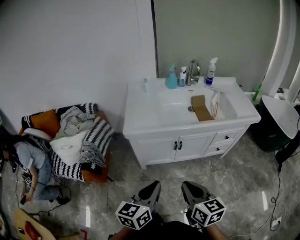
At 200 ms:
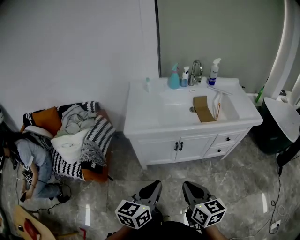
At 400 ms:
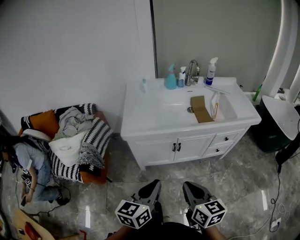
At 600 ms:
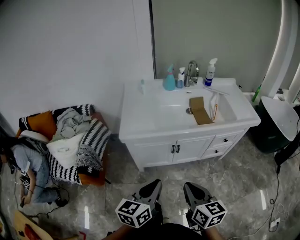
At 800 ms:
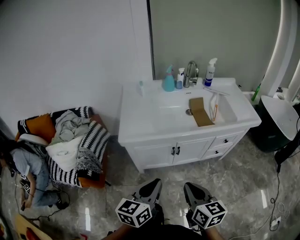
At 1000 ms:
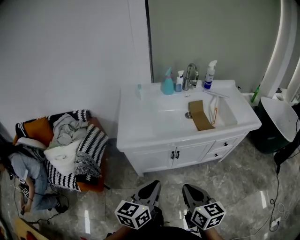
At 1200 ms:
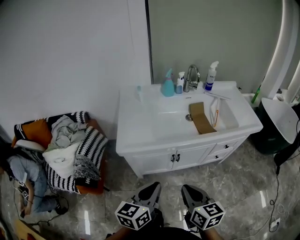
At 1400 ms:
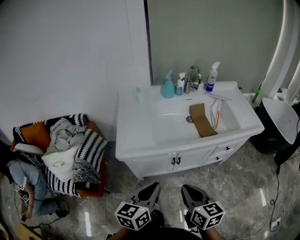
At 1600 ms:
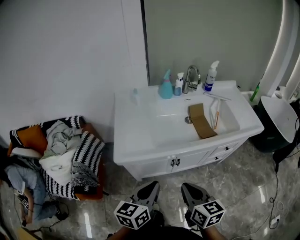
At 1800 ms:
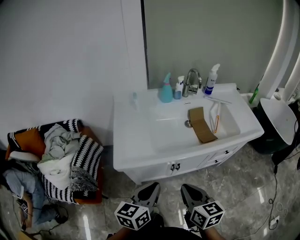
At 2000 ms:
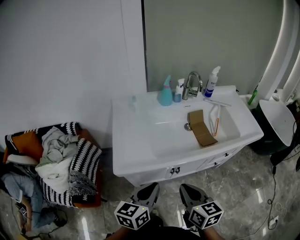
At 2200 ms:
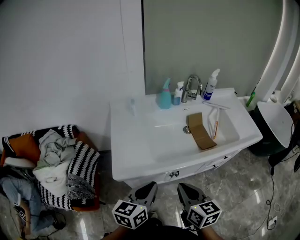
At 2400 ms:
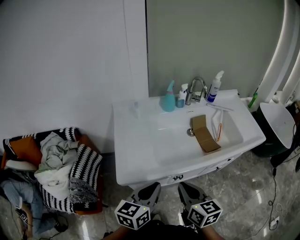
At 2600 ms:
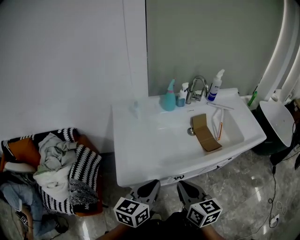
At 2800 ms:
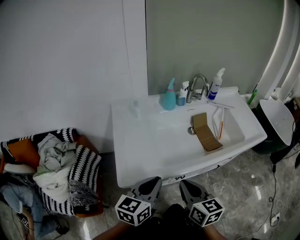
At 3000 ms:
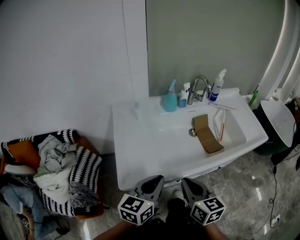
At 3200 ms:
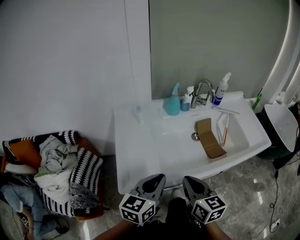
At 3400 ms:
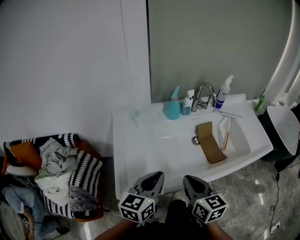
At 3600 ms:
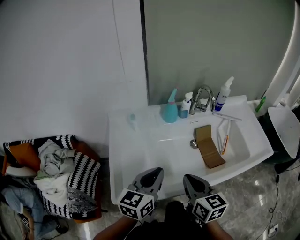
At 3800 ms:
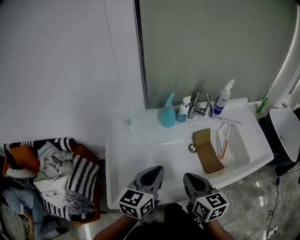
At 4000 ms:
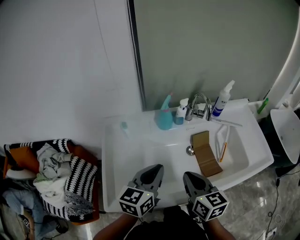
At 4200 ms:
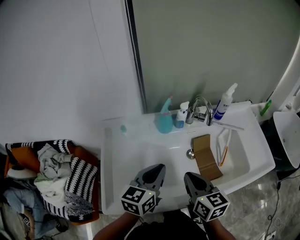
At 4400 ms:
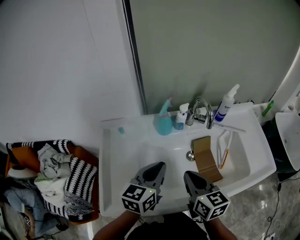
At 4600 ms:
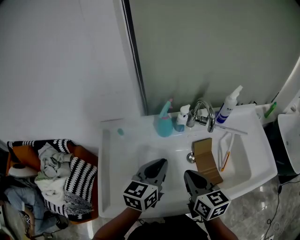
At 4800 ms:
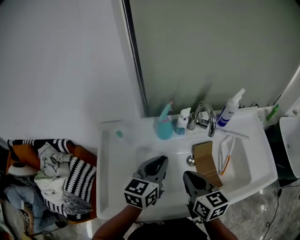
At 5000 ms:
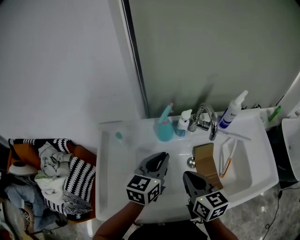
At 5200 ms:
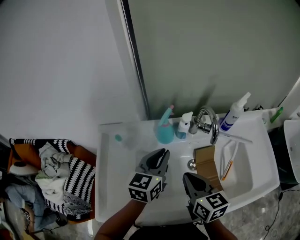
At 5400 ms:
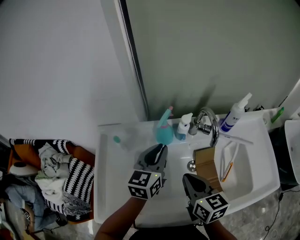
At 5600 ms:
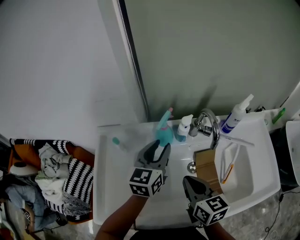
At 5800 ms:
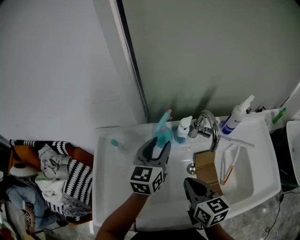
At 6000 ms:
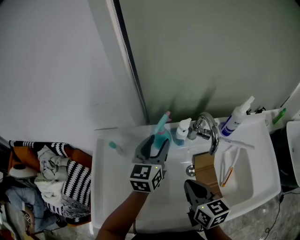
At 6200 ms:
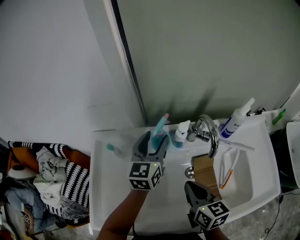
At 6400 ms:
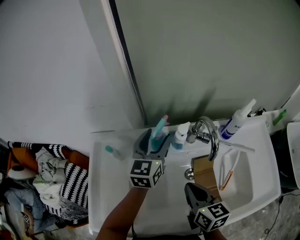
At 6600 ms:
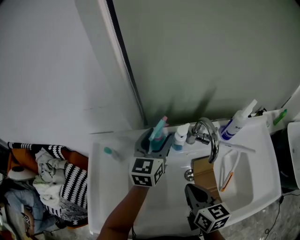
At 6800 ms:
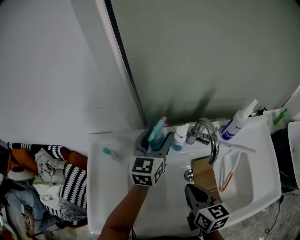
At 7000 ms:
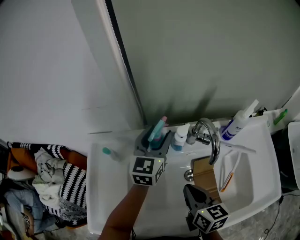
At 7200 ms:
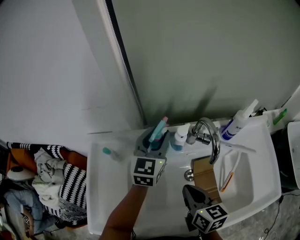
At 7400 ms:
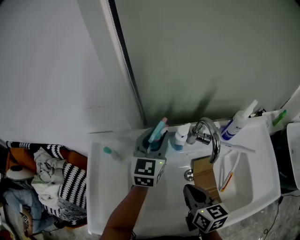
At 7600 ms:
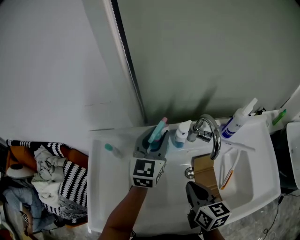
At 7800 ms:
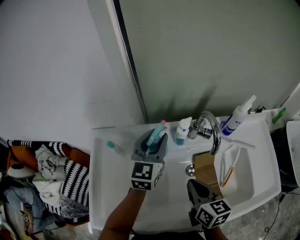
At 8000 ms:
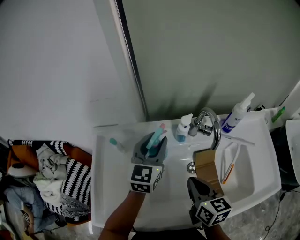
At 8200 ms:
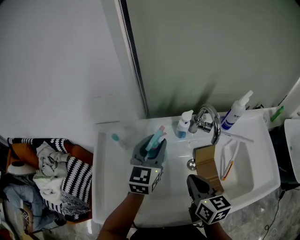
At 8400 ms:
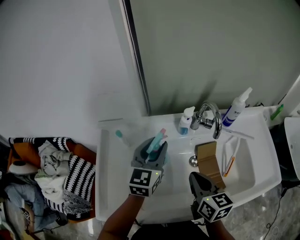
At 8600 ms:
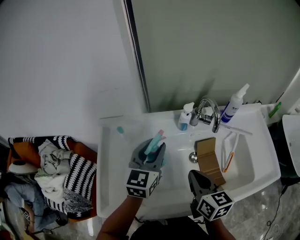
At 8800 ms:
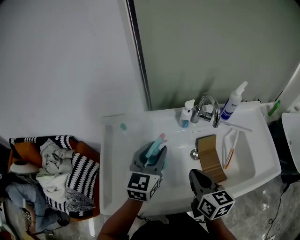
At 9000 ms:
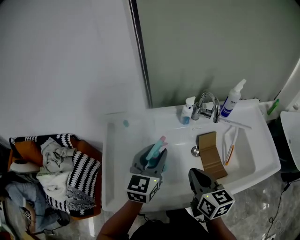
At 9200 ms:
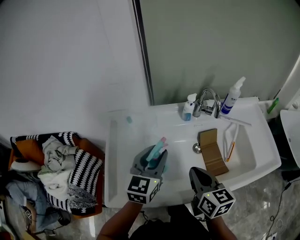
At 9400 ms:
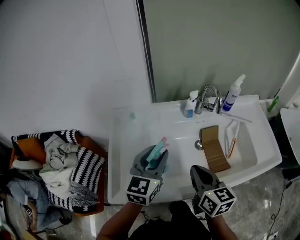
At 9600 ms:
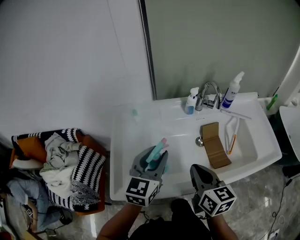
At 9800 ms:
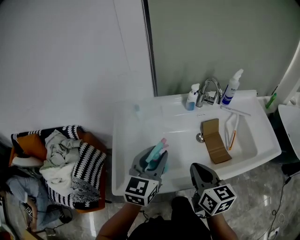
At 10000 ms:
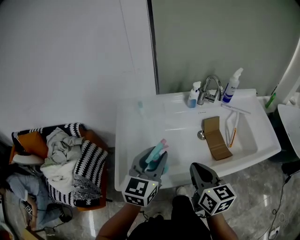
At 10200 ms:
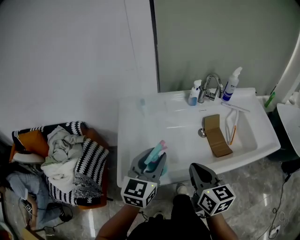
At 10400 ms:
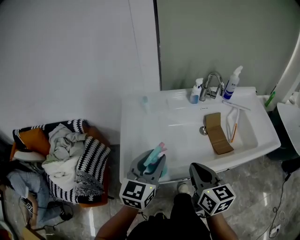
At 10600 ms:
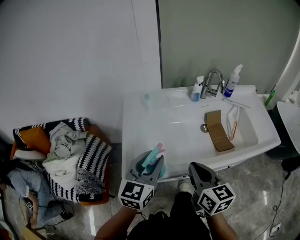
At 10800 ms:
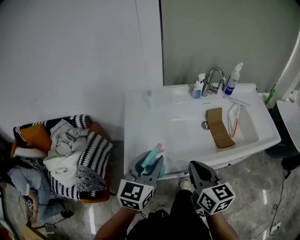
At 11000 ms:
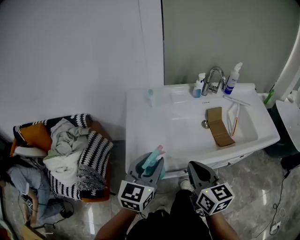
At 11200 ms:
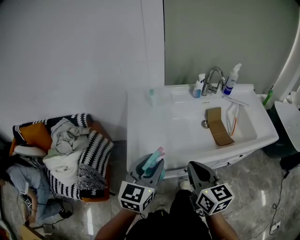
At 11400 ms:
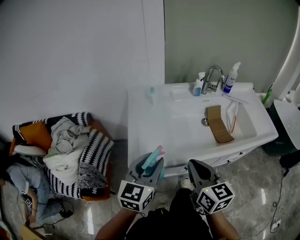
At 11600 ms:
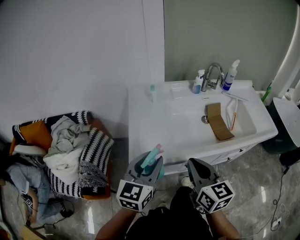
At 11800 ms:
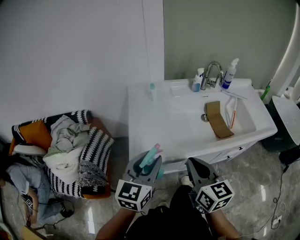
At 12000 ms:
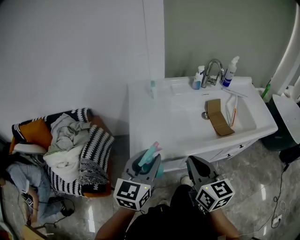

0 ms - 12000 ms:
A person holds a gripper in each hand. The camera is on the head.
0 ms - 1600 ms: The grippers both shift forward by approximately 15 cm.
1600 ms - 3000 ms: The left gripper travels forward by some 15 cm; the right gripper moves forward and to the left, approximately 15 cm.
3000 ms - 4400 ms: The grippers both shift forward by approximately 25 cm.
4400 ms - 6000 ms: The right gripper goes about 5 cm forward. The left gripper is displaced forward by some 20 cm, and opens up.
6000 ms - 7600 ms: The grippers move only a little.
7600 ms - 9000 ms: The left gripper shifts roughly 20 cm backward; the right gripper shifts some 10 cm backward.
9000 ms - 10400 ms: The grippers both shift backward and to the left by about 20 cm.
10400 ms - 12000 ms: Both grippers travel together backward and to the left, approximately 10 cm.

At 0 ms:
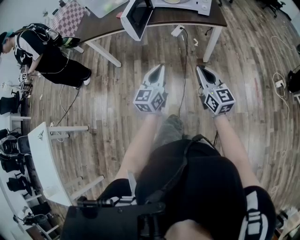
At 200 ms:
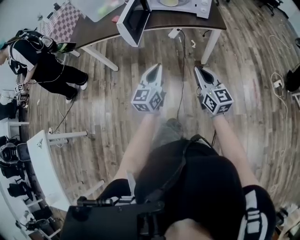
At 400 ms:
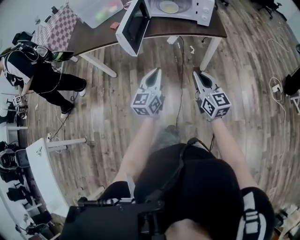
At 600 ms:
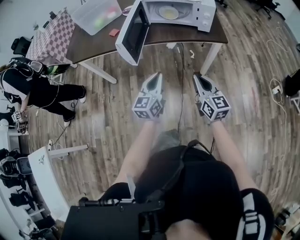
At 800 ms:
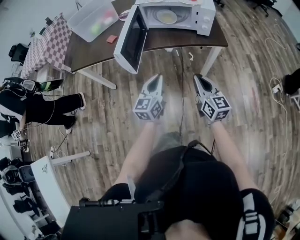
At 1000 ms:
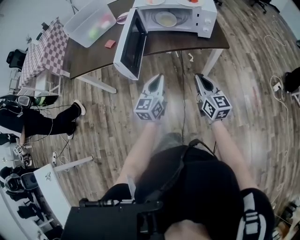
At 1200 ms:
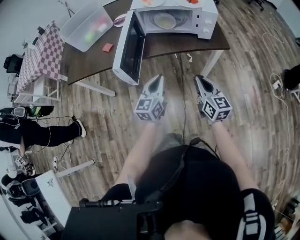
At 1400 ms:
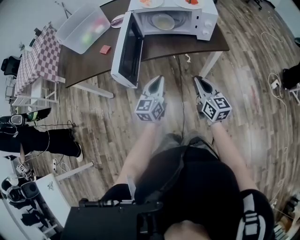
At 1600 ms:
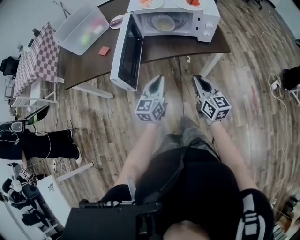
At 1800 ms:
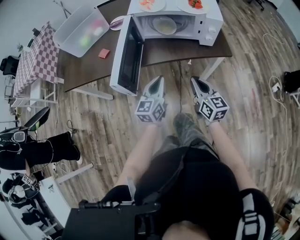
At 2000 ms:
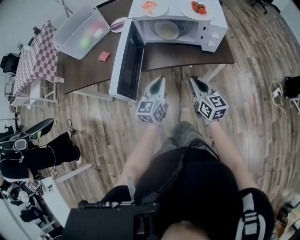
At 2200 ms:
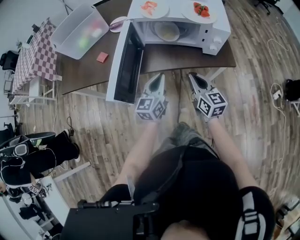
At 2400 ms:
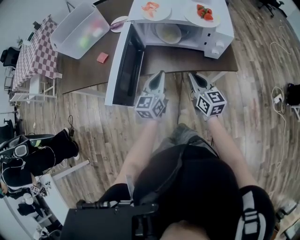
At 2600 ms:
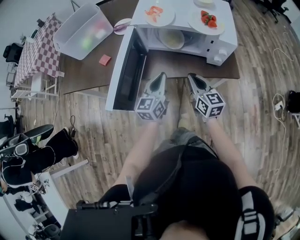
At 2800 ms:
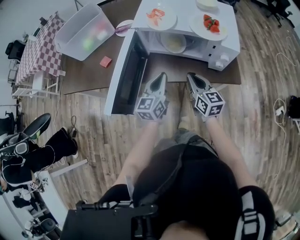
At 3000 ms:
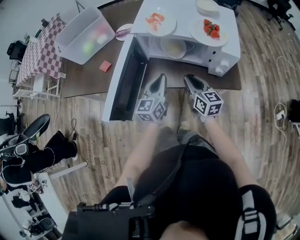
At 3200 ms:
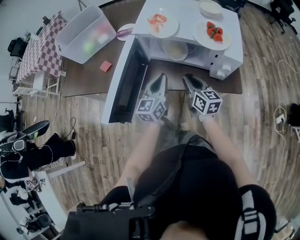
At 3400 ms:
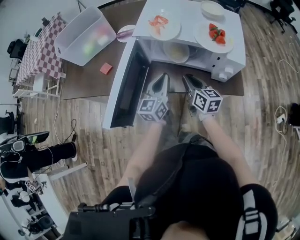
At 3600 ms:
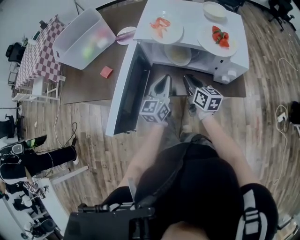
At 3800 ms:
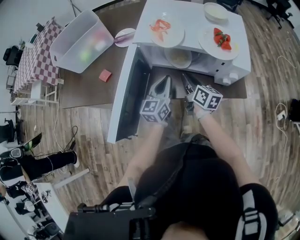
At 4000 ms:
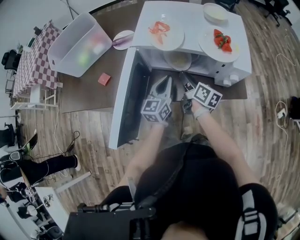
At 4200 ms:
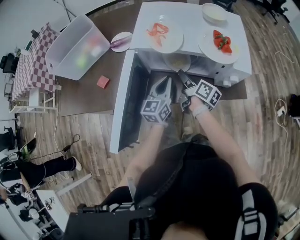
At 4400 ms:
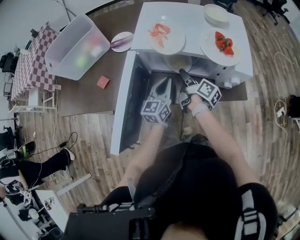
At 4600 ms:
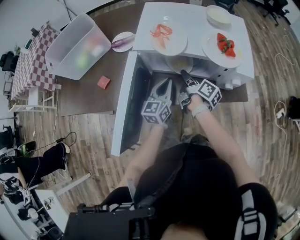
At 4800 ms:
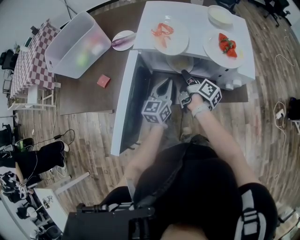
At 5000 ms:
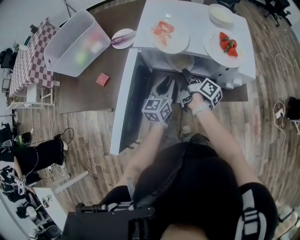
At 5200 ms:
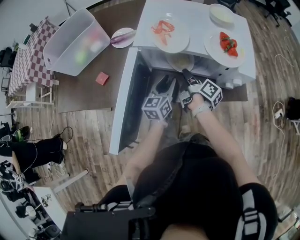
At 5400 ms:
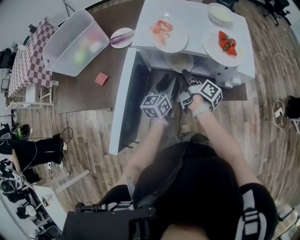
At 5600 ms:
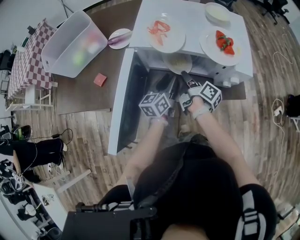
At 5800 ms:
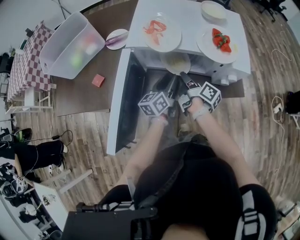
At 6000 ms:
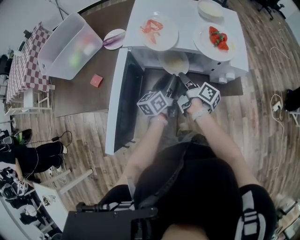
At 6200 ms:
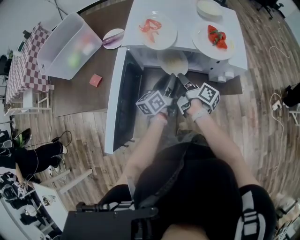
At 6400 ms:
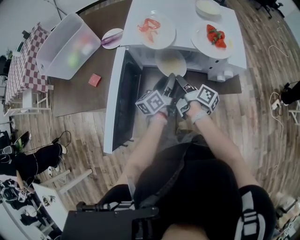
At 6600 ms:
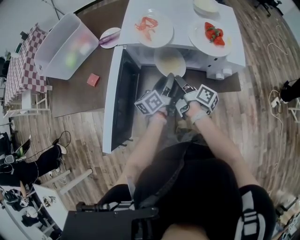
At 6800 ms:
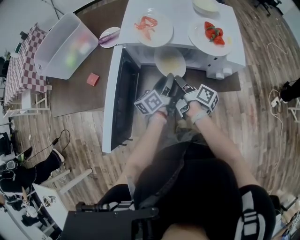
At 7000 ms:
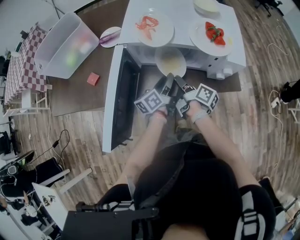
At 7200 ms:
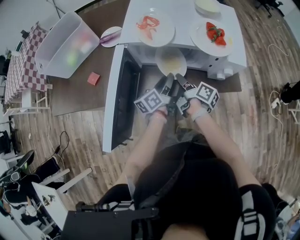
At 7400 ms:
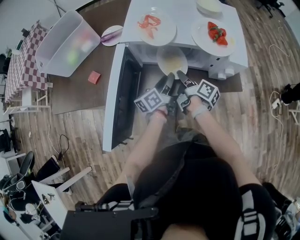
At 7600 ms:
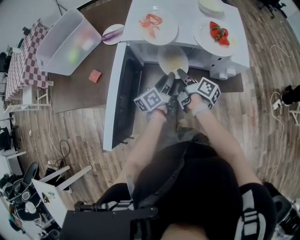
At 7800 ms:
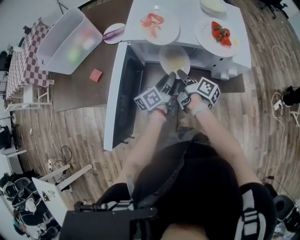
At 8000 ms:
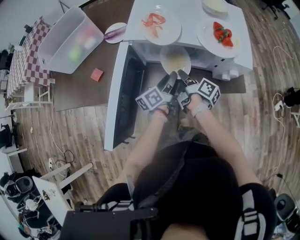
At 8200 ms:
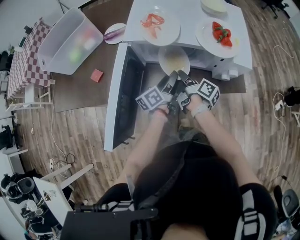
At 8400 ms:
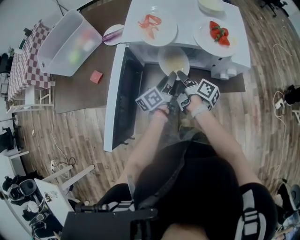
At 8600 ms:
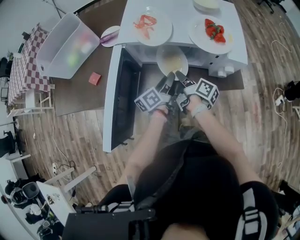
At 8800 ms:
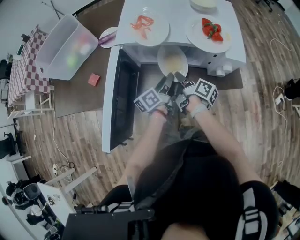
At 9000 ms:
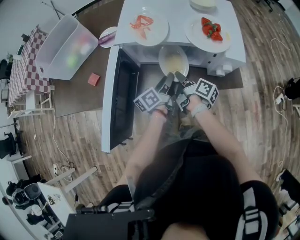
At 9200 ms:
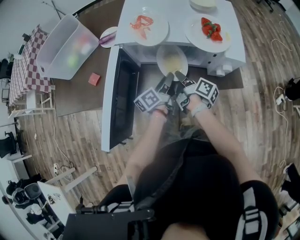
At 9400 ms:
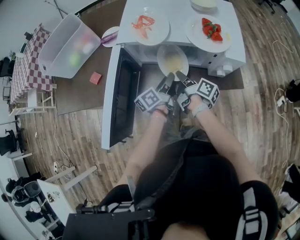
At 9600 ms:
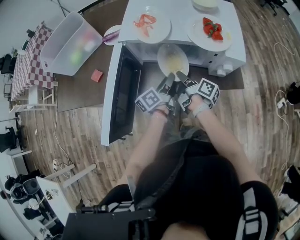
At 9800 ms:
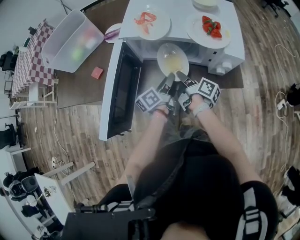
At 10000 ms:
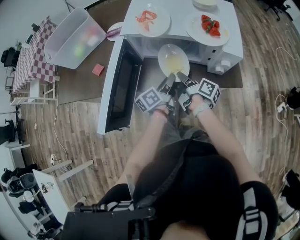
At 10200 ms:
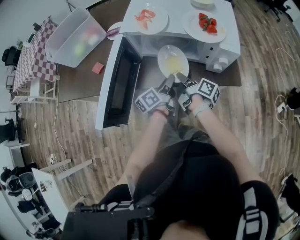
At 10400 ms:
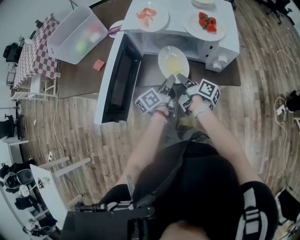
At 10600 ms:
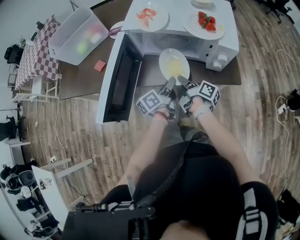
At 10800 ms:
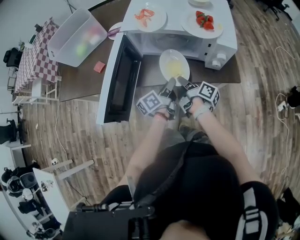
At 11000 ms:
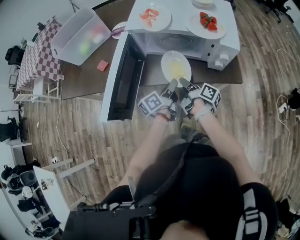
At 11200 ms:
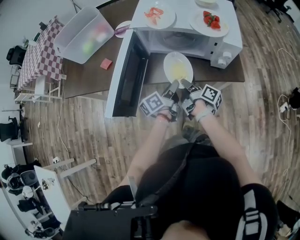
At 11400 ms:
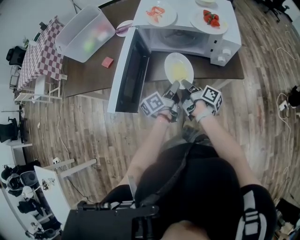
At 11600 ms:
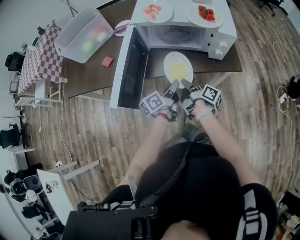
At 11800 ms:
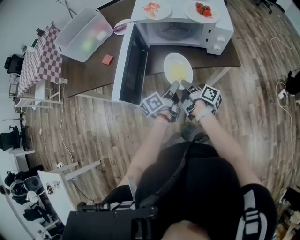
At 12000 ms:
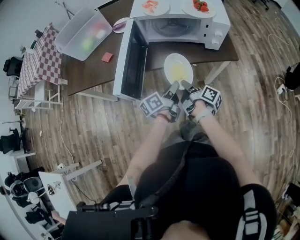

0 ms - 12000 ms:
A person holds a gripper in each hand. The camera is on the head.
0 ms - 1600 ms: The left gripper changes place by roughly 30 cm.
1600 ms - 3000 ms: The left gripper changes place by about 20 cm.
3000 ms - 4400 ms: The left gripper shifts by about 10 cm.
4400 ms - 6000 ms: The left gripper changes its angle by approximately 30 degrees, and opens its fingers.
6000 ms - 7600 ms: The left gripper closes its fingers.
9000 ms - 10400 ms: The left gripper ends up some 5 cm from where it was.
10400 ms - 12000 ms: The left gripper shifts by about 15 cm.
